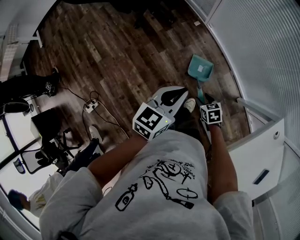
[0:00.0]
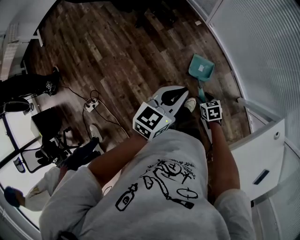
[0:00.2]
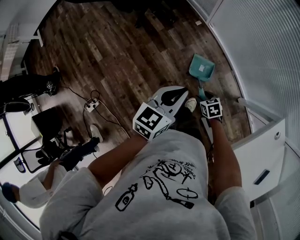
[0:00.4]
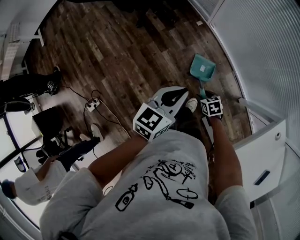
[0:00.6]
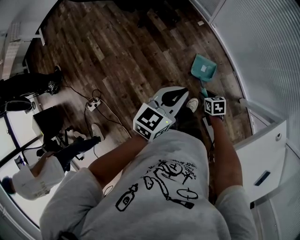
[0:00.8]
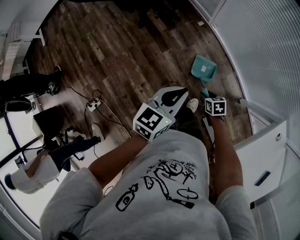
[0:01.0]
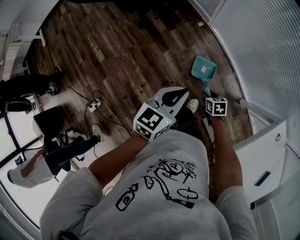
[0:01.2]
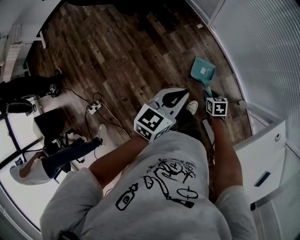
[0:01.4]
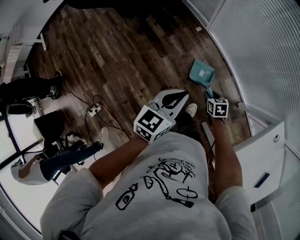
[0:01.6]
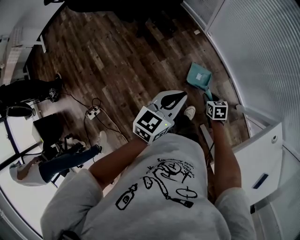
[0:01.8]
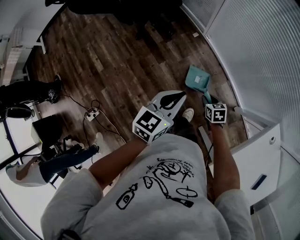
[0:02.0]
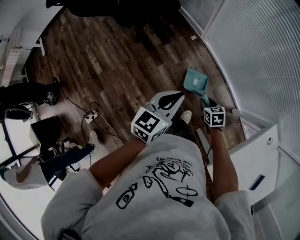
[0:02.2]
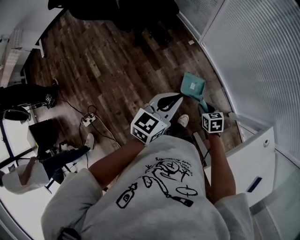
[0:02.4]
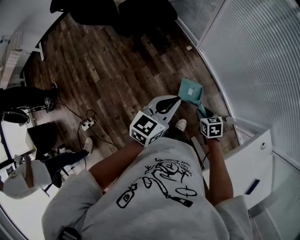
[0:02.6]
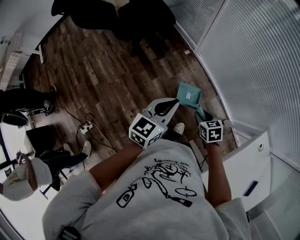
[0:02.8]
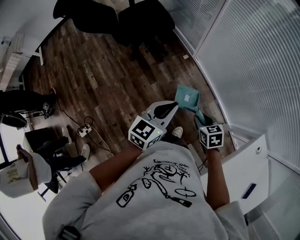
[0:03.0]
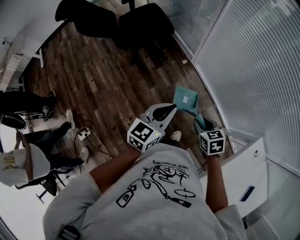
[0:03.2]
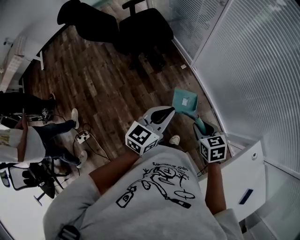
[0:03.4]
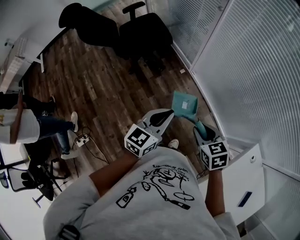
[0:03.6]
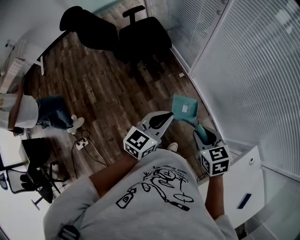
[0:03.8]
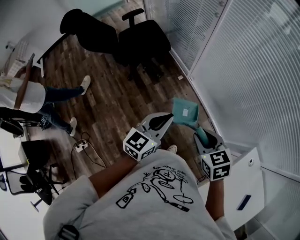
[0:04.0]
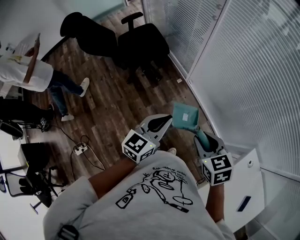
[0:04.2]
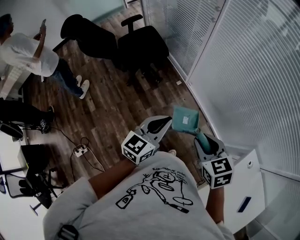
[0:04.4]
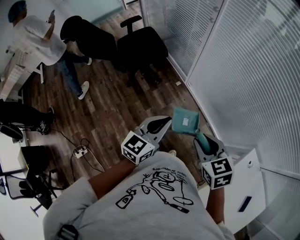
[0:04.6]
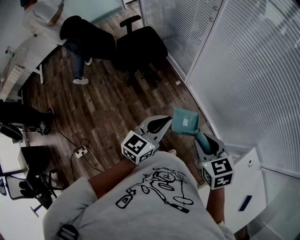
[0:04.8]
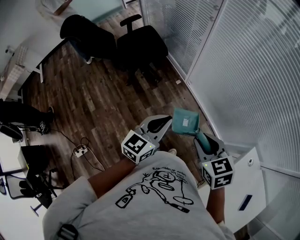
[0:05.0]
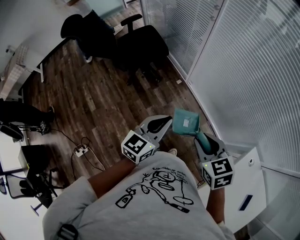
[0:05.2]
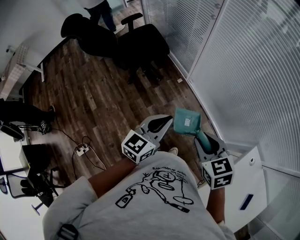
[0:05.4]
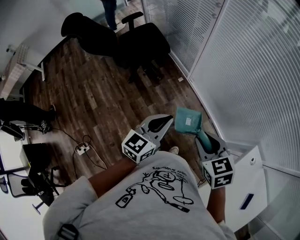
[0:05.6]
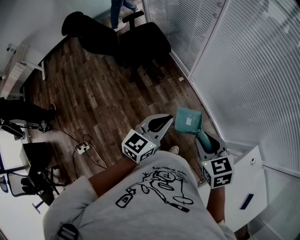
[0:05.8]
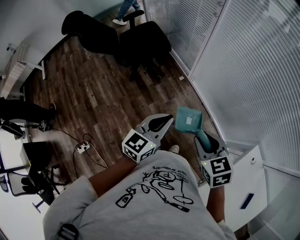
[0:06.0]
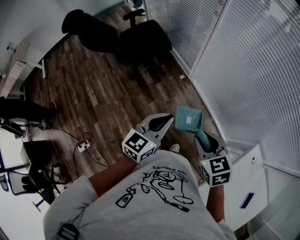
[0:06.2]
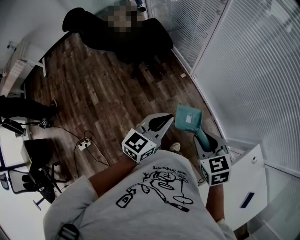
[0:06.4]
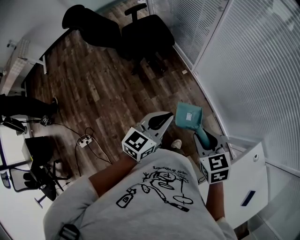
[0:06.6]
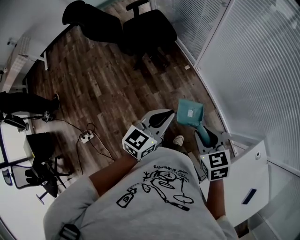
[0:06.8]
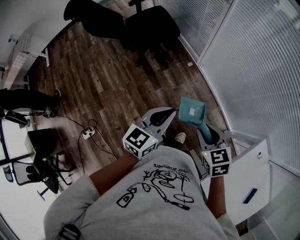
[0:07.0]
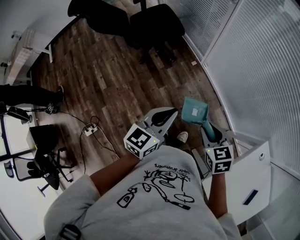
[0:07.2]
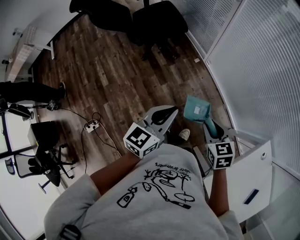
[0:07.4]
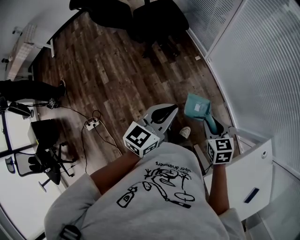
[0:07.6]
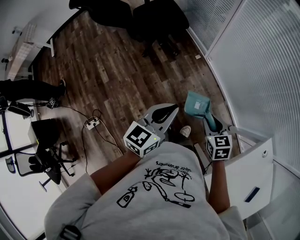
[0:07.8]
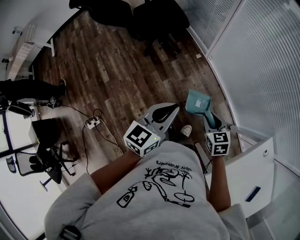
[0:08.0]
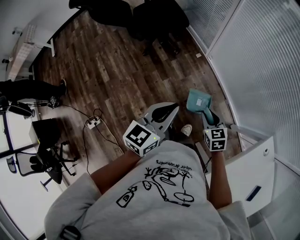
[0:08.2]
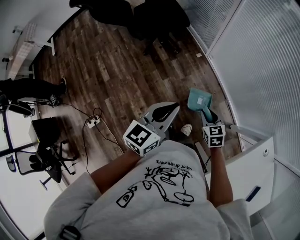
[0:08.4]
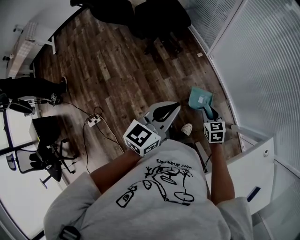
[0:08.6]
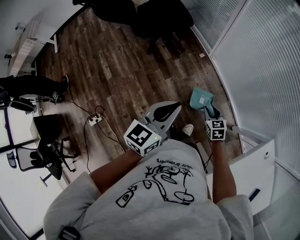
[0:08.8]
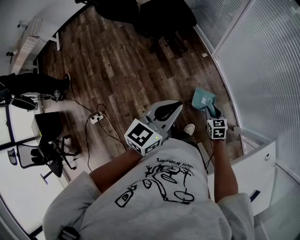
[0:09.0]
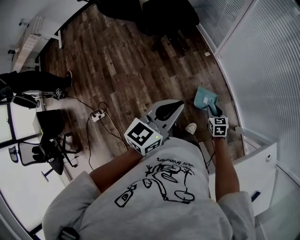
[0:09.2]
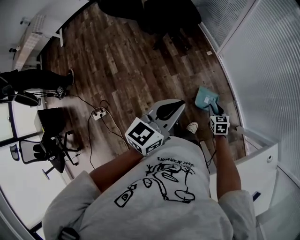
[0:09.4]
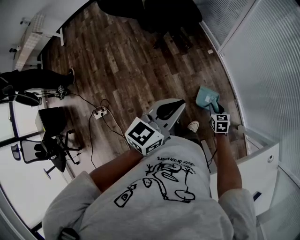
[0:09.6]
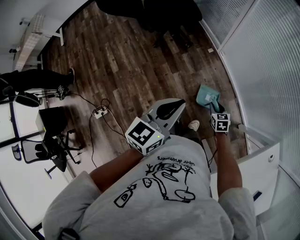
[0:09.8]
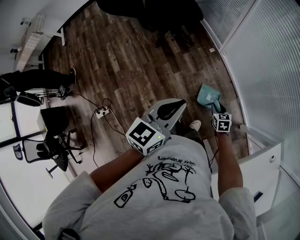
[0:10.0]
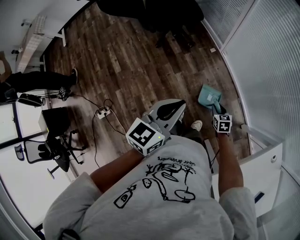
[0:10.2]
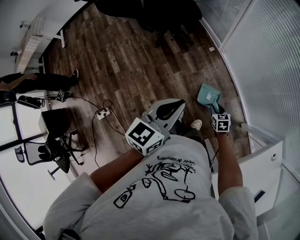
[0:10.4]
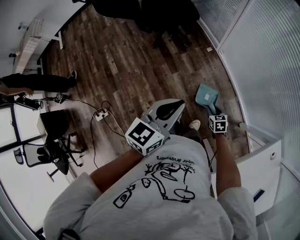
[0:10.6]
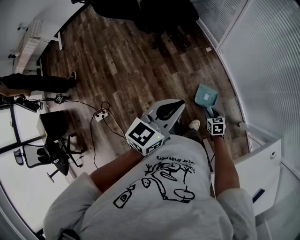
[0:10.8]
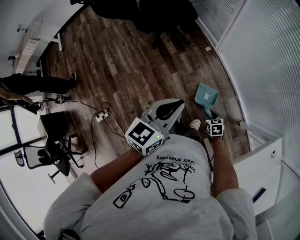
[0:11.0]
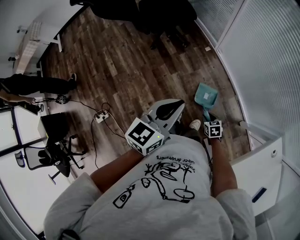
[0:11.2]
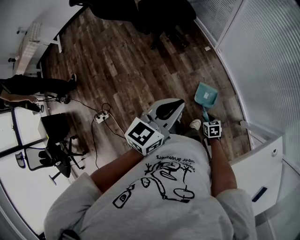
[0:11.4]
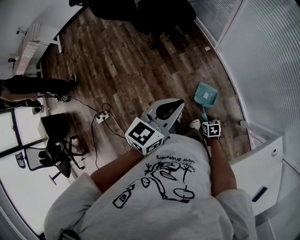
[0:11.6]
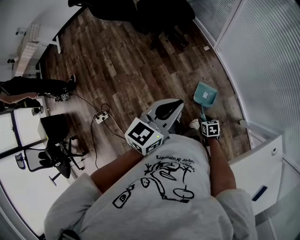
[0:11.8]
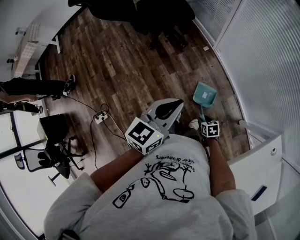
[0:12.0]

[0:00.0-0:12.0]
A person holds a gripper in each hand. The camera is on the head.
0:00.0 to 0:01.6: The right gripper is displaced forward by some 5 cm.
0:01.6 to 0:03.0: The right gripper shifts about 20 cm upward. Meanwhile the left gripper shifts roughly 5 cm upward.
0:03.0 to 0:04.4: The left gripper moves upward, some 10 cm; the right gripper heads upward, covering some 25 cm.
0:04.4 to 0:06.0: The grippers move only a little.
0:06.0 to 0:07.6: The right gripper goes about 15 cm downward. The left gripper shifts by approximately 5 cm.
0:07.6 to 0:09.0: The right gripper moves downward, roughly 15 cm.
0:09.0 to 0:10.4: The right gripper heads downward, covering approximately 10 cm.
0:10.4 to 0:12.0: The right gripper shifts roughly 10 cm backward.

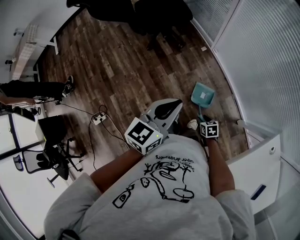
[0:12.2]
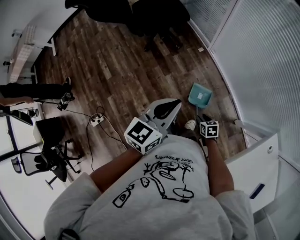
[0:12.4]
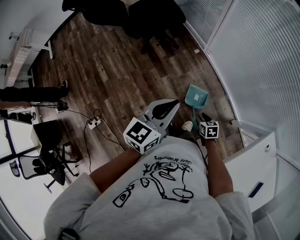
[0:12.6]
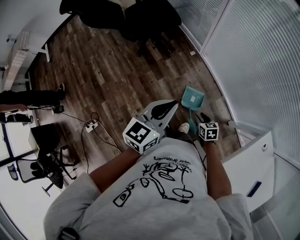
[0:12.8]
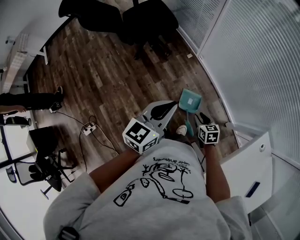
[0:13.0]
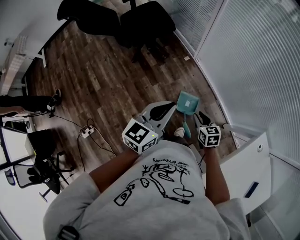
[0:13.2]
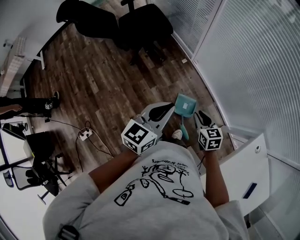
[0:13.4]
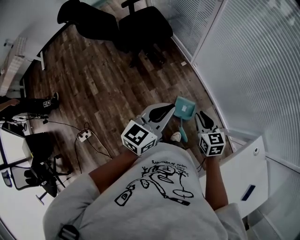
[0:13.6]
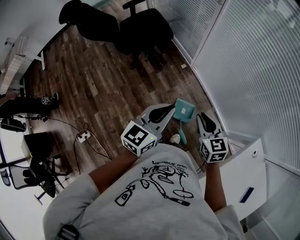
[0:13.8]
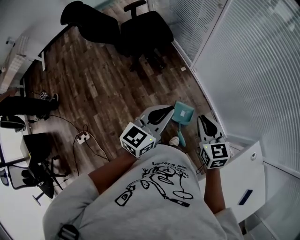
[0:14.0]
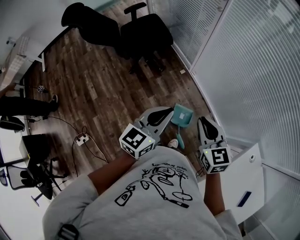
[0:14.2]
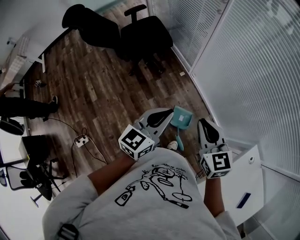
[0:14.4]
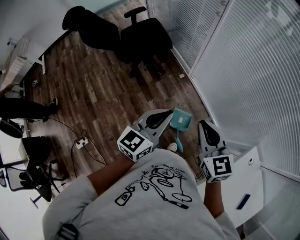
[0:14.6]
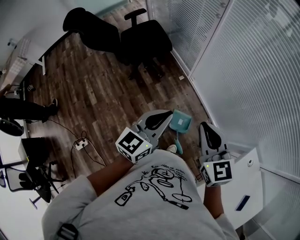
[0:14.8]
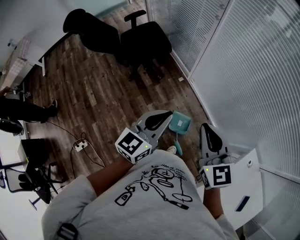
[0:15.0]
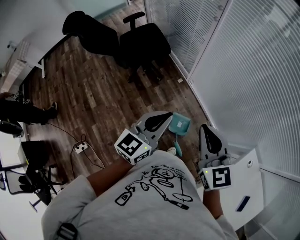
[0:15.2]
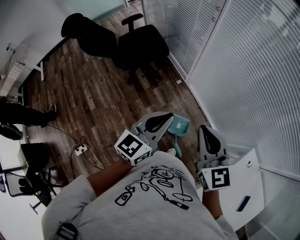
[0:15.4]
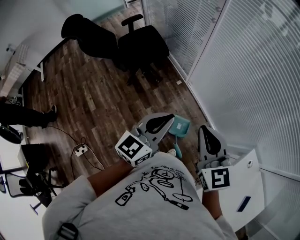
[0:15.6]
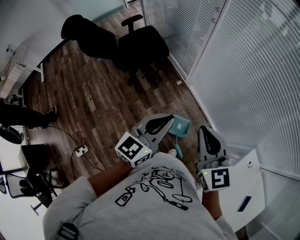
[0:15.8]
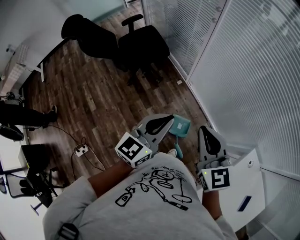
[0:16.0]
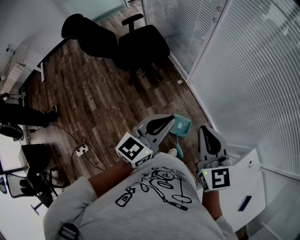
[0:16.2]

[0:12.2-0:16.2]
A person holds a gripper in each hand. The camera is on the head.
0:12.2 to 0:13.6: The left gripper ends up approximately 5 cm from where it was; the right gripper moves upward, some 30 cm, and turns by roughly 30 degrees.
0:13.6 to 0:14.8: The left gripper shifts some 5 cm upward; the right gripper moves upward, approximately 20 cm, and swivels roughly 20 degrees.
0:14.8 to 0:16.2: The grippers make only small movements.

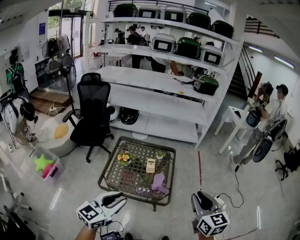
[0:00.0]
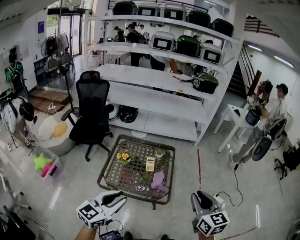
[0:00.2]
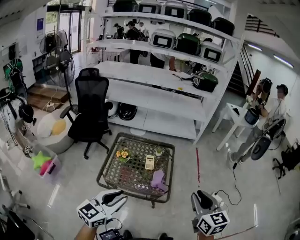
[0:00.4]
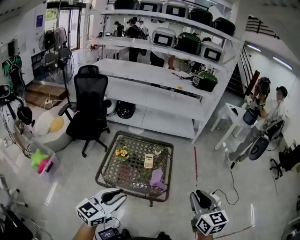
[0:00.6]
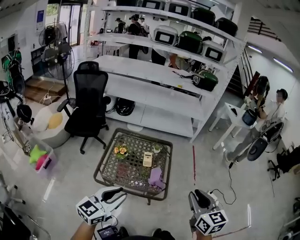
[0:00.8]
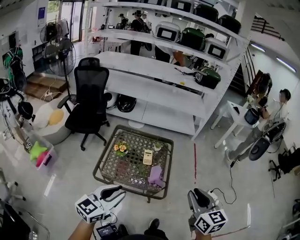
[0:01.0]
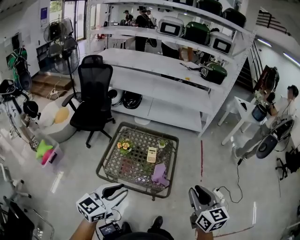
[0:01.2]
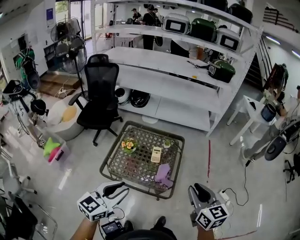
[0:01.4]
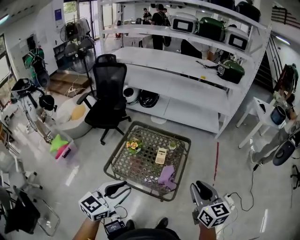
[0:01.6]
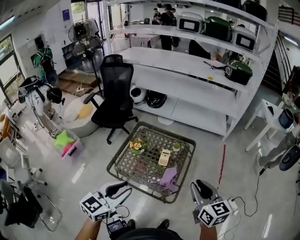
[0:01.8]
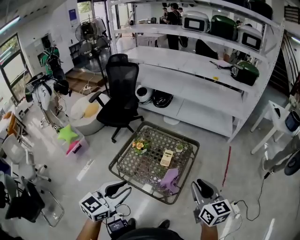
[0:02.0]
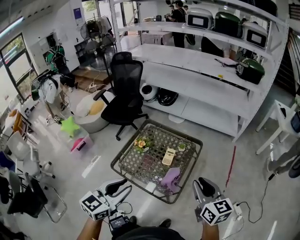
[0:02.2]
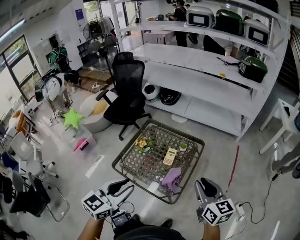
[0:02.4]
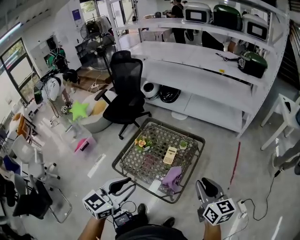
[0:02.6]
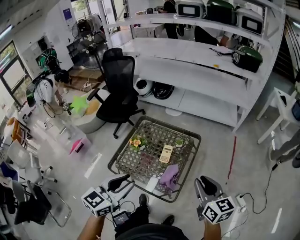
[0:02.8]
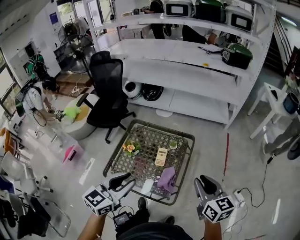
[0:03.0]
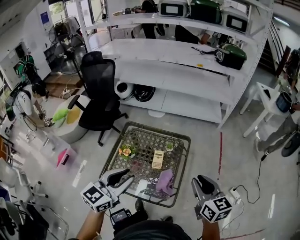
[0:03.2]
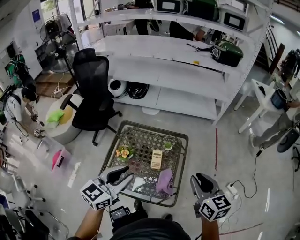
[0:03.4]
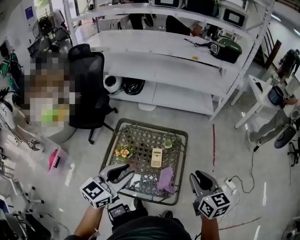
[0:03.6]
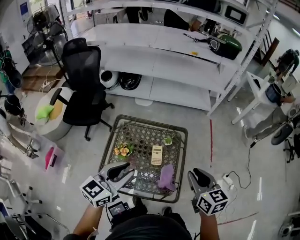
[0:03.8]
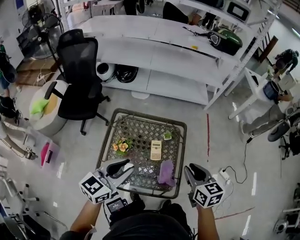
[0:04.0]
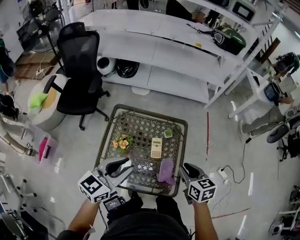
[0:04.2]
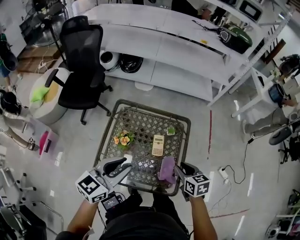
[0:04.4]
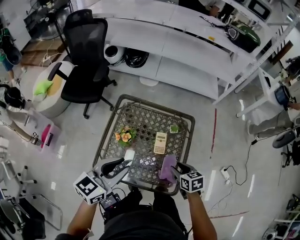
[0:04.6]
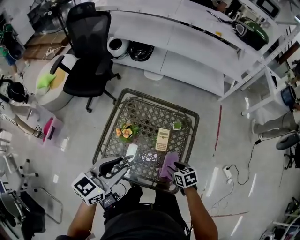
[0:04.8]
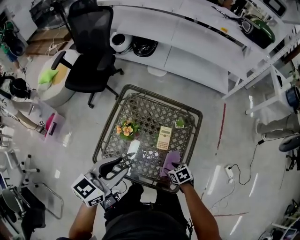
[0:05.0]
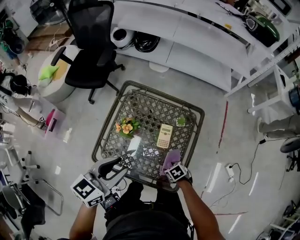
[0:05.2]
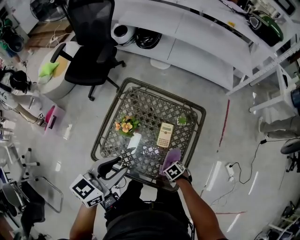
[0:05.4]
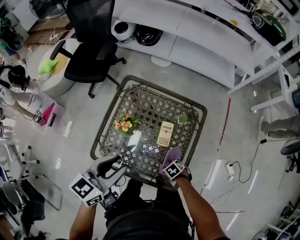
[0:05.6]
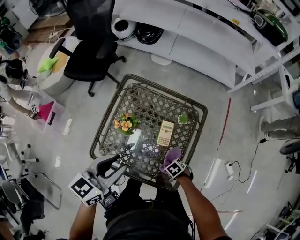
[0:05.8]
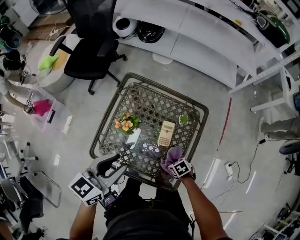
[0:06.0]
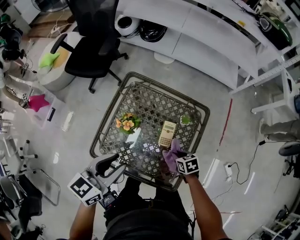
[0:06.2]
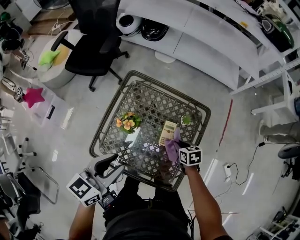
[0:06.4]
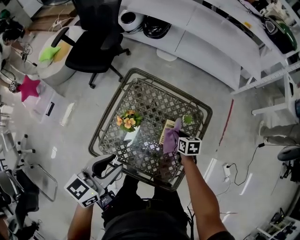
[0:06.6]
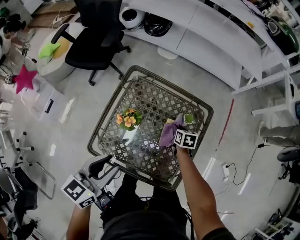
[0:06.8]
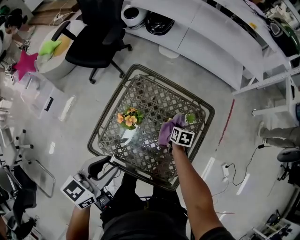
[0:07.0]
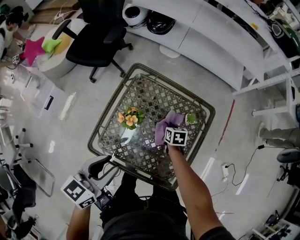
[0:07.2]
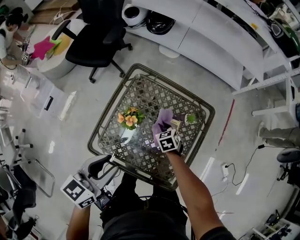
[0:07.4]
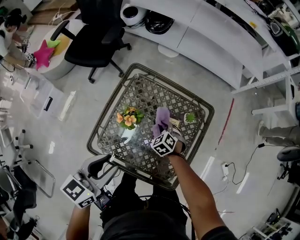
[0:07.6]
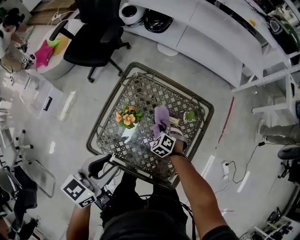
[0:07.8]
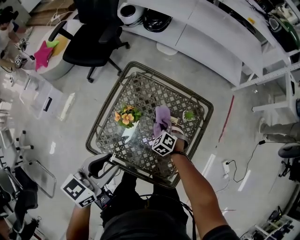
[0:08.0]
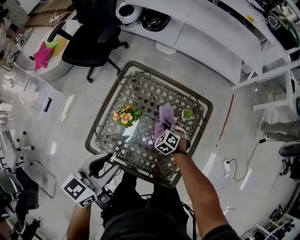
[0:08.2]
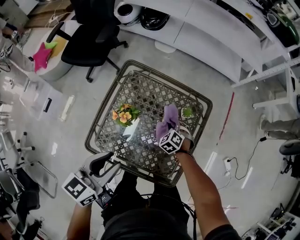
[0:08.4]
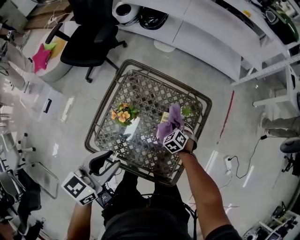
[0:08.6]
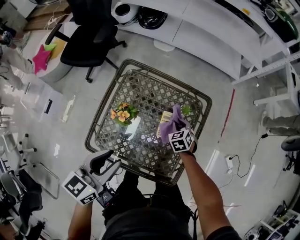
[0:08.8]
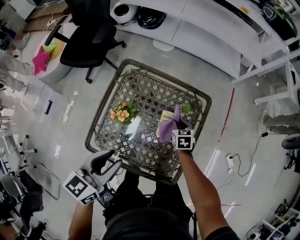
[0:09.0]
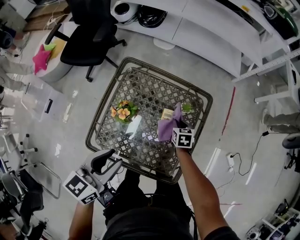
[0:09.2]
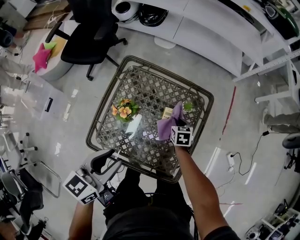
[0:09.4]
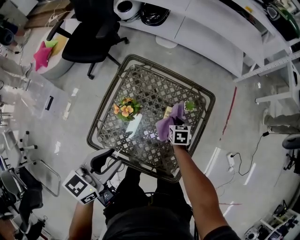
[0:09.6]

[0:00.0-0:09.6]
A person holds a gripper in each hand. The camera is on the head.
0:00.0 to 0:01.6: The right gripper moves forward, some 10 cm. Meanwhile the left gripper travels forward by approximately 5 cm.
0:01.6 to 0:03.2: The grippers both shift forward by some 15 cm.
0:03.2 to 0:04.8: The left gripper heads to the left, downward and forward, covering some 15 cm. Meanwhile the right gripper goes about 35 cm downward and to the left, points its fingers approximately 40 degrees further downward, and opens.
0:04.8 to 0:06.4: The right gripper ends up roughly 15 cm from where it was, and closes its fingers, while the left gripper ends up some 5 cm from where it was.
0:06.4 to 0:08.0: The right gripper travels to the left and downward by some 10 cm, and rolls counterclockwise, seen from behind, by roughly 60 degrees.
0:08.0 to 0:09.6: The right gripper goes approximately 10 cm to the right, and twists roughly 60 degrees clockwise, seen from behind.
